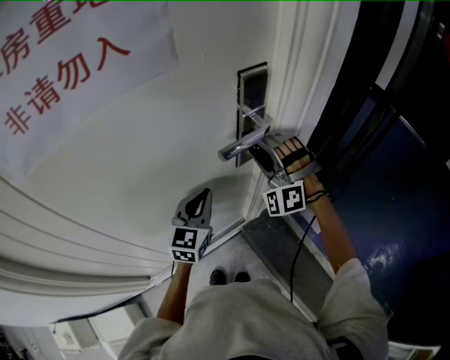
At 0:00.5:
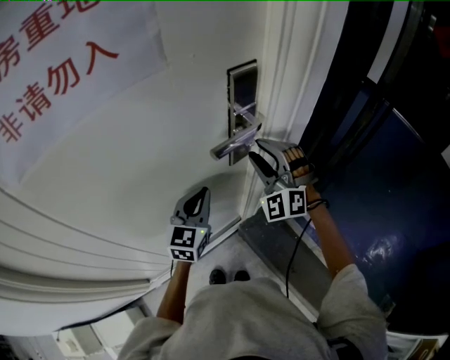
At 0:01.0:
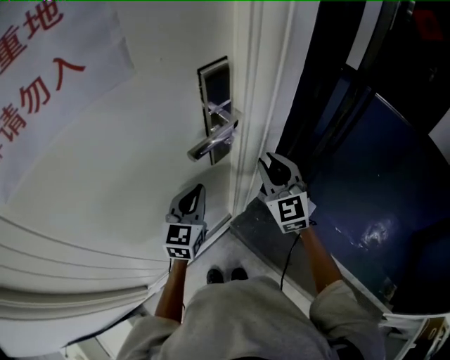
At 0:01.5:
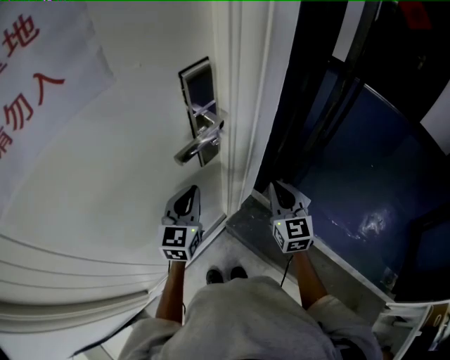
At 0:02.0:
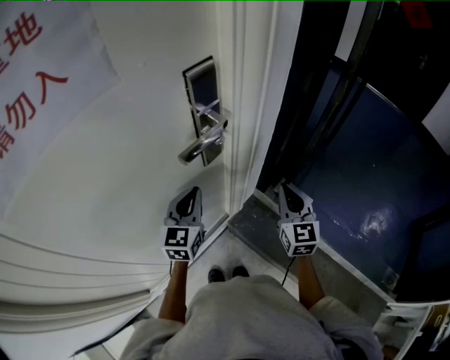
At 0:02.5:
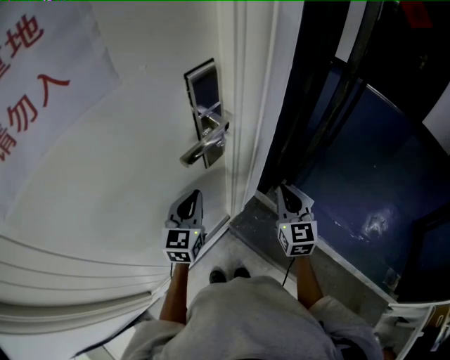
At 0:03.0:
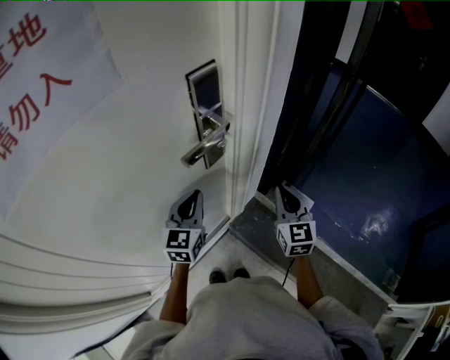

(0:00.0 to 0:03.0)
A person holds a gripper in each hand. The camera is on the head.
0:00.0 - 0:01.5: The right gripper moves to the right, backward and downward, approximately 20 cm, rolls clockwise, seen from behind, by approximately 80 degrees, and closes. The left gripper is displaced to the right by some 5 cm.
0:01.5 - 0:03.0: The grippers stay close to where they were, moving slightly.

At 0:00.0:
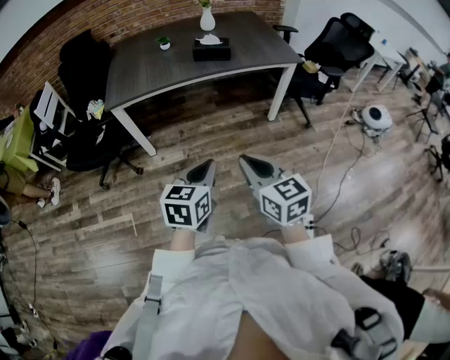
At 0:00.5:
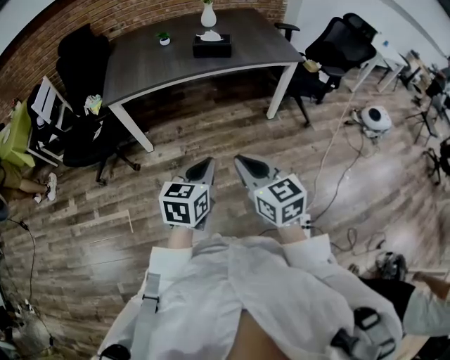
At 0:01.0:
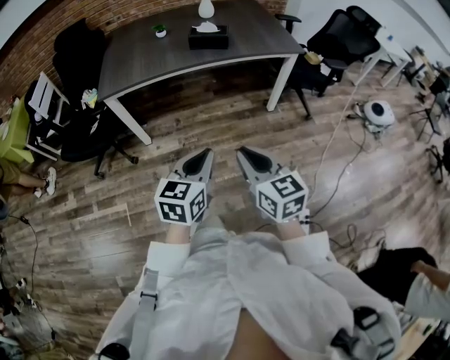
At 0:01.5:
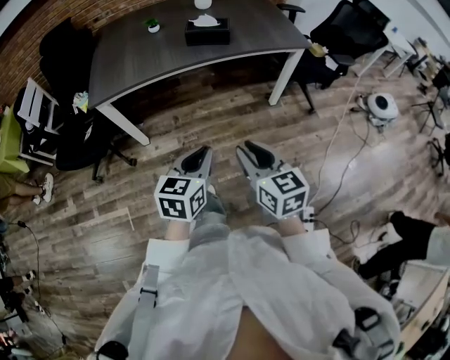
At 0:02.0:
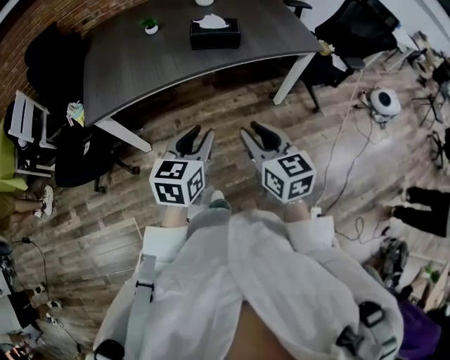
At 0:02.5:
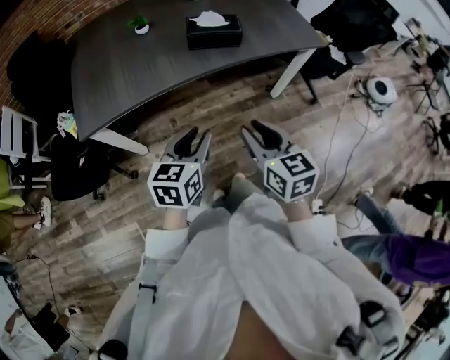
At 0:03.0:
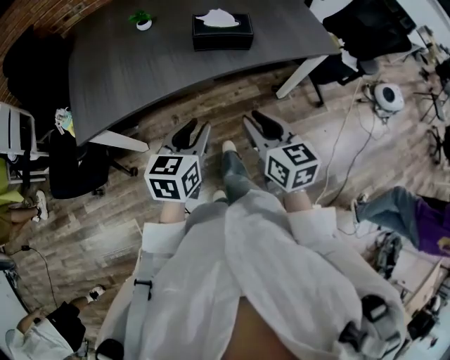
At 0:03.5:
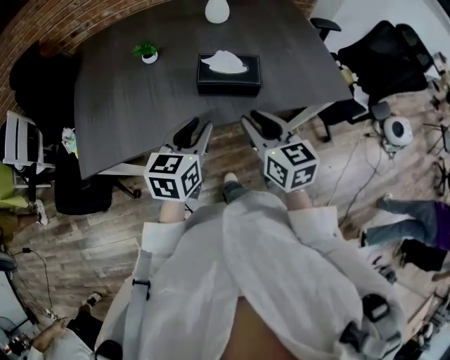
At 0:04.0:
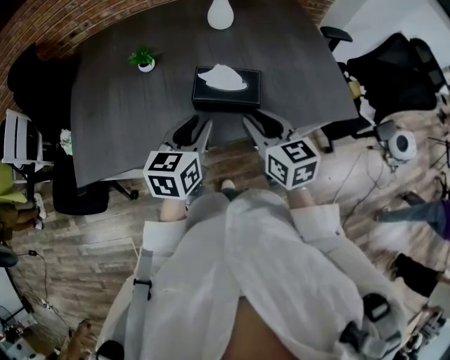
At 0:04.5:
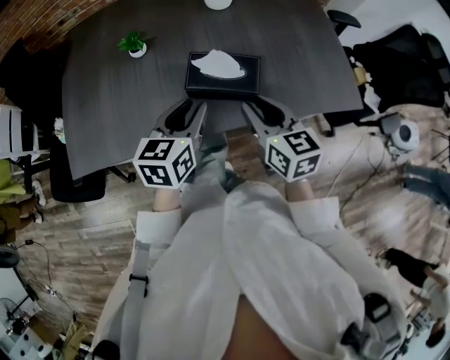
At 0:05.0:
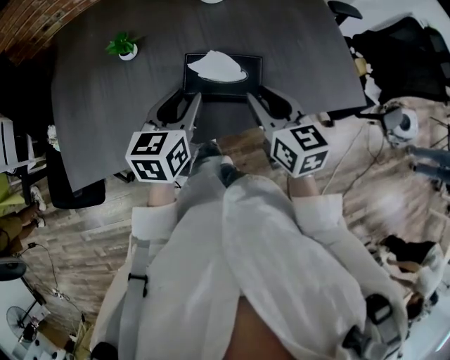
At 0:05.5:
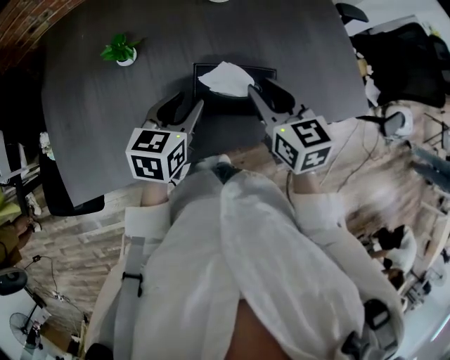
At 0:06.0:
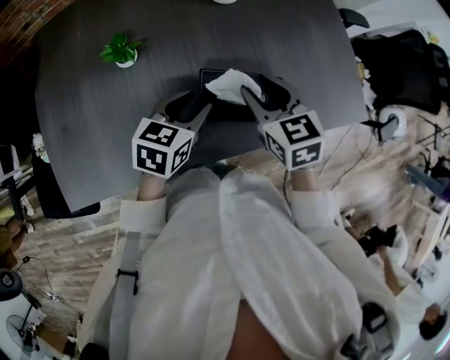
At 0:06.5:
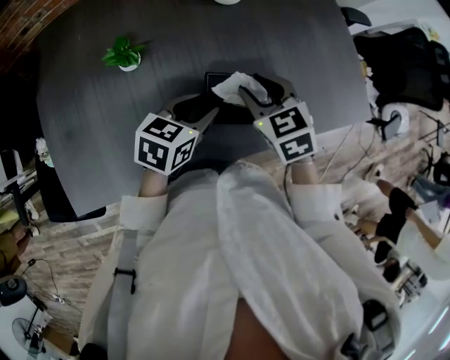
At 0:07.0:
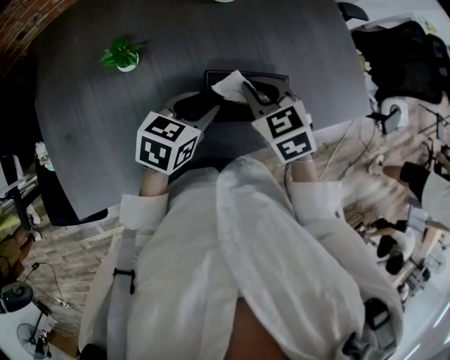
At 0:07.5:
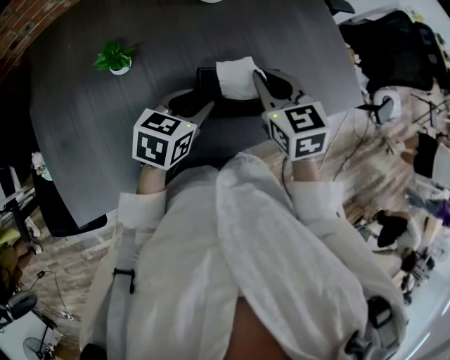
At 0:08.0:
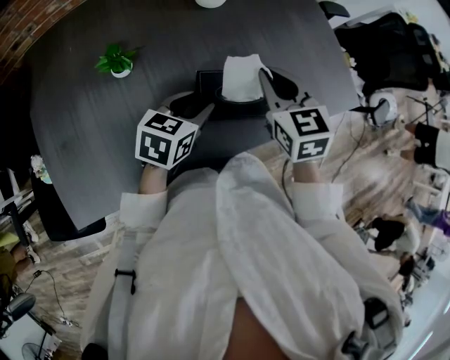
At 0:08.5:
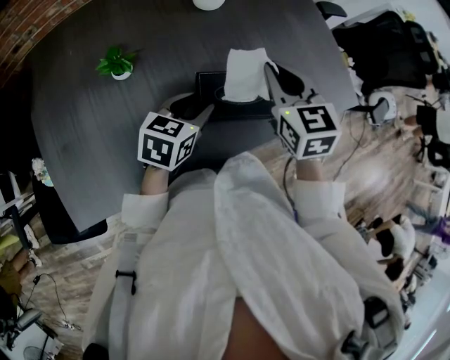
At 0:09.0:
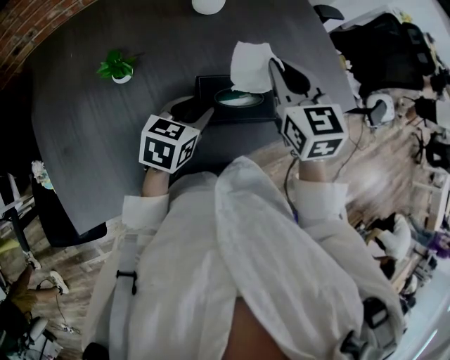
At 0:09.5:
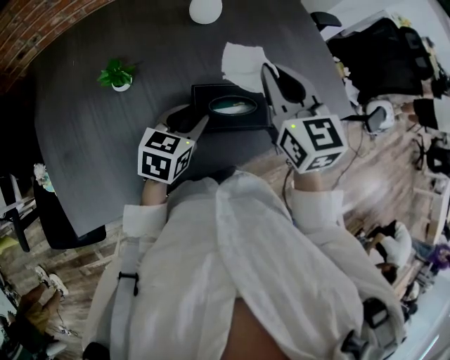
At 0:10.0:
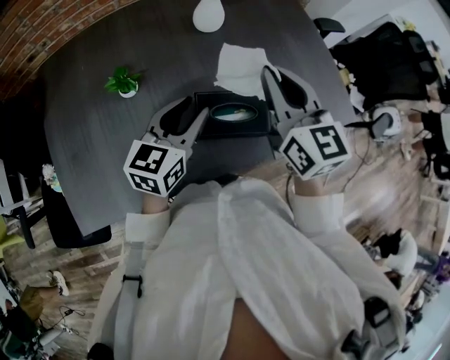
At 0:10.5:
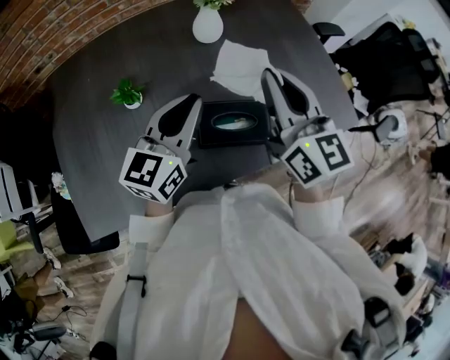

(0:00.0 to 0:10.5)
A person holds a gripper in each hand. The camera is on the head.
0:00.0 - 0:02.0: Both grippers travel together forward, roughly 25 cm. The right gripper opens up, while the left gripper opens up.
0:02.0 - 0:04.0: The two grippers go roughly 40 cm forward.
0:04.0 - 0:06.5: The left gripper moves forward and downward, about 15 cm, and changes its angle by some 30 degrees. The right gripper moves forward and to the left, about 20 cm, and swivels approximately 30 degrees.
0:06.5 - 0:08.5: The right gripper heads upward, covering roughly 10 cm, swivels approximately 20 degrees, and closes up.
0:08.5 - 0:10.5: The grippers both shift upward by approximately 15 cm. The left gripper tilts its fingers roughly 30 degrees upward, and closes. Meanwhile the right gripper rotates about 30 degrees.

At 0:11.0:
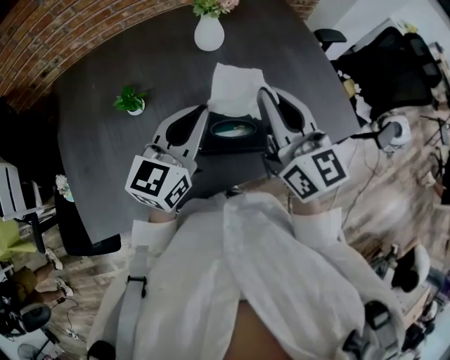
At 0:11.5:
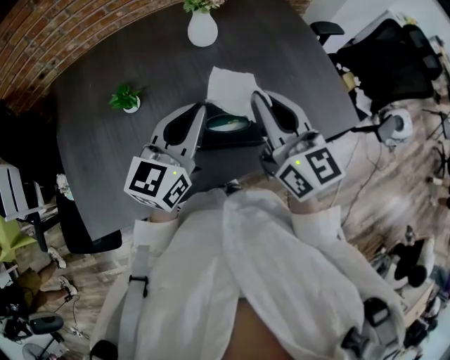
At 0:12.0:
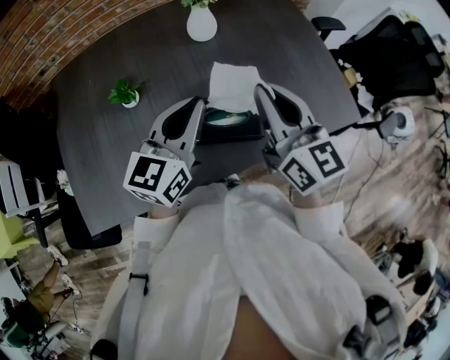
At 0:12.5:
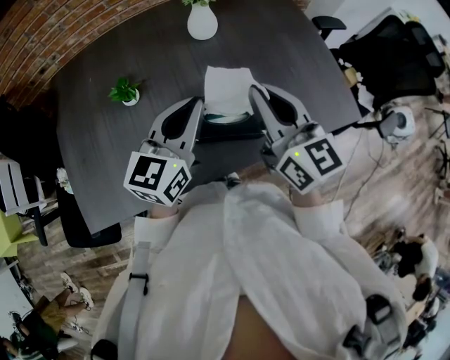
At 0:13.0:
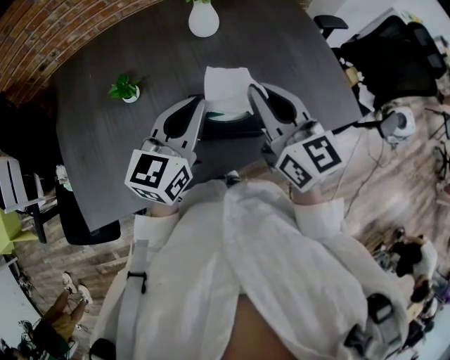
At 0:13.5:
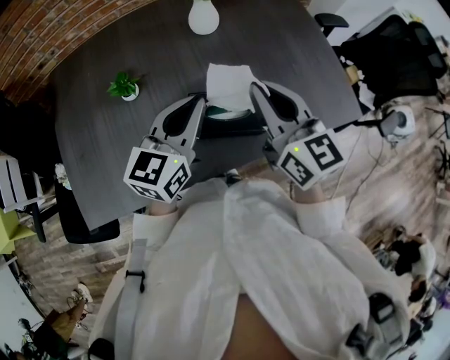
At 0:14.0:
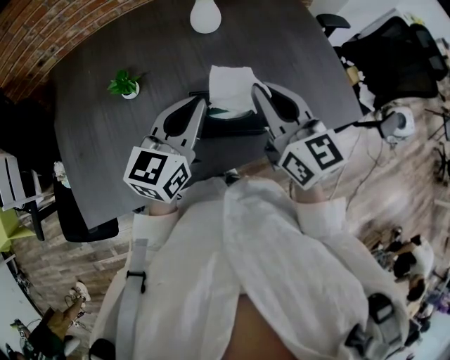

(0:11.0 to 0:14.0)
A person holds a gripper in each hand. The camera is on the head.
0:11.0 - 0:14.0: There are only small adjustments of the grippers.

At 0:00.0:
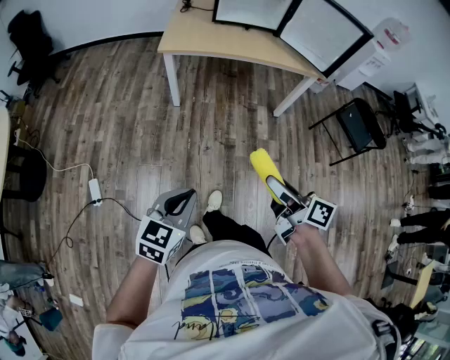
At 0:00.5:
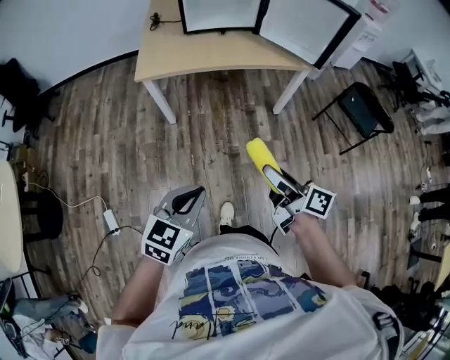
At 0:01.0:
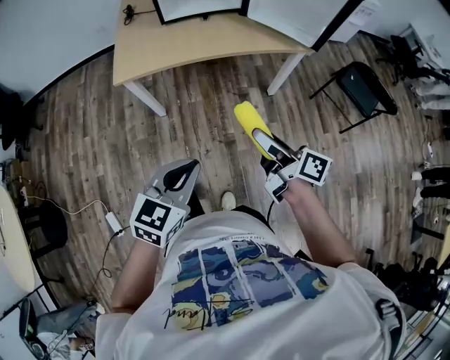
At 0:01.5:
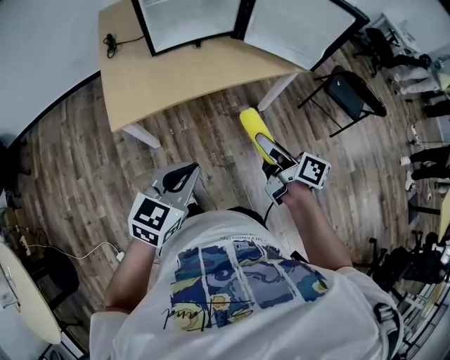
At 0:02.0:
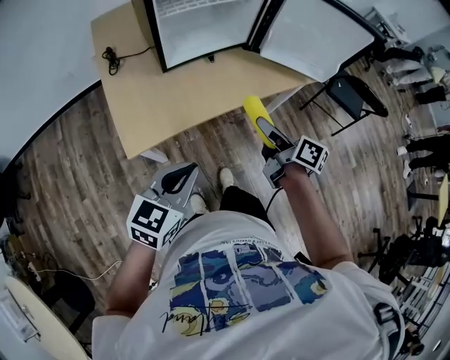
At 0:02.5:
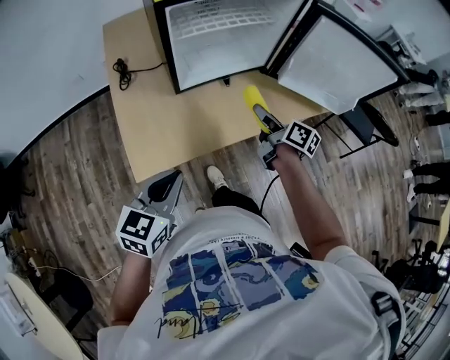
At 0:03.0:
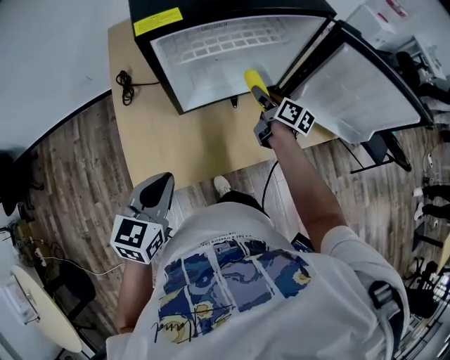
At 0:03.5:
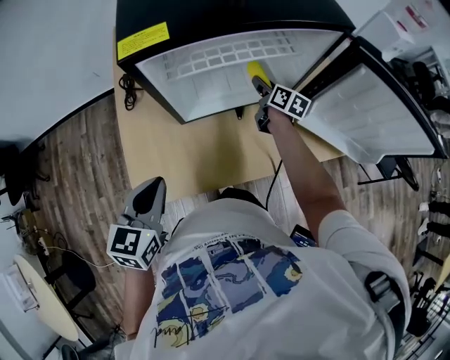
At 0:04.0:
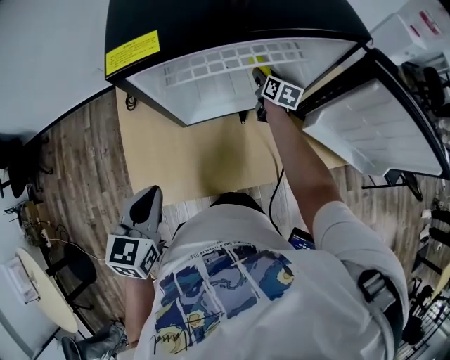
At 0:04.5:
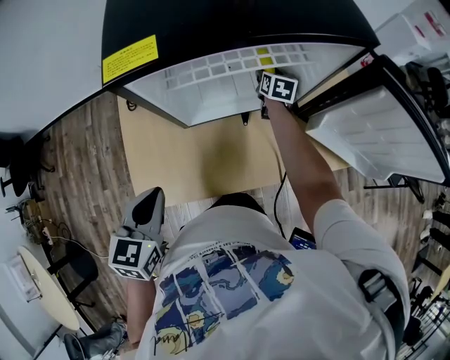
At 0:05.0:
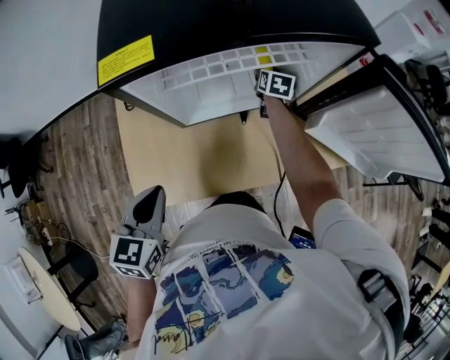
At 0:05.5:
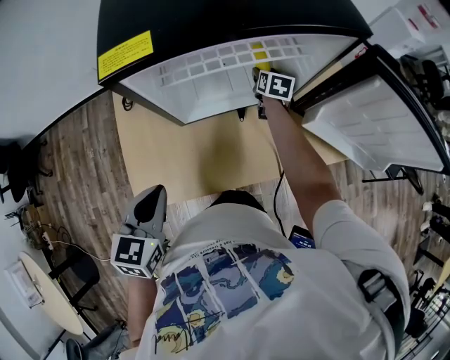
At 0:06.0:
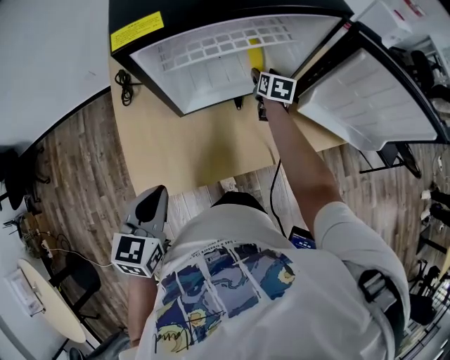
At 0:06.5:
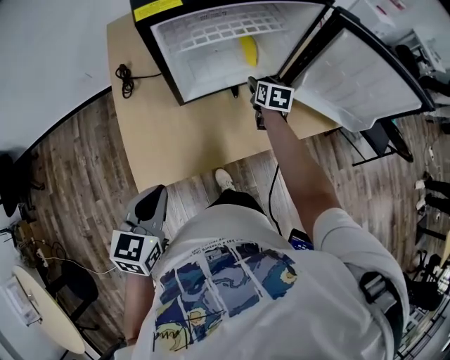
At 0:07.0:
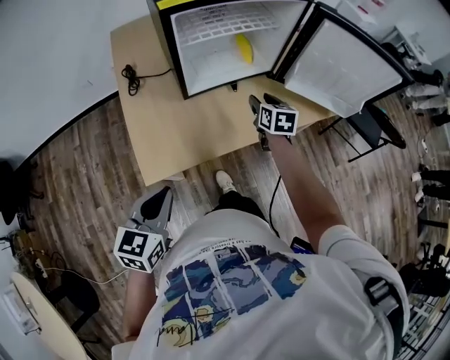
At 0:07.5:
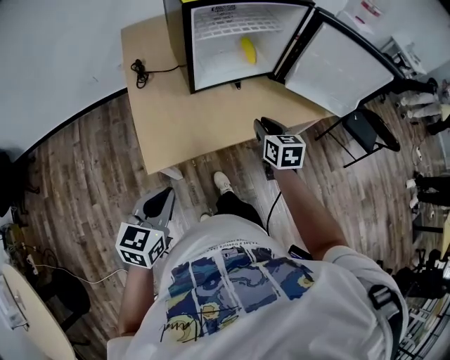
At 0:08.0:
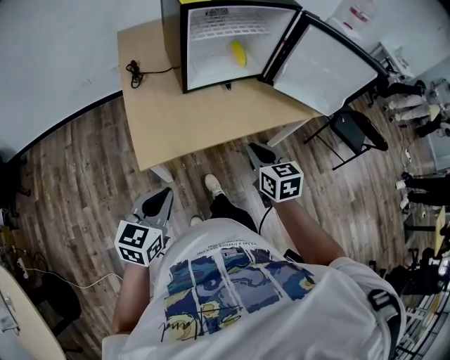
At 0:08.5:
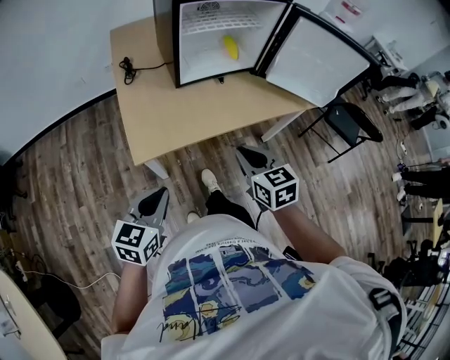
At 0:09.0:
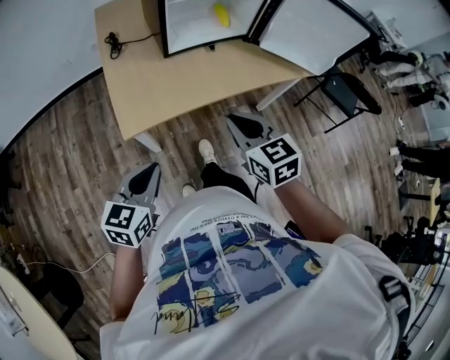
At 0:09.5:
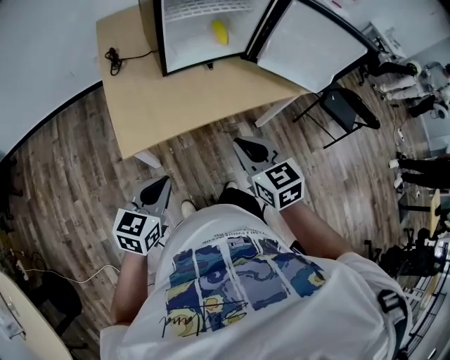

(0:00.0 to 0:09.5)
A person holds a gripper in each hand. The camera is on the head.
0:00.0 - 0:02.0: The pair of grippers is taken roughly 60 cm. The right gripper swivels approximately 30 degrees; the left gripper swivels some 30 degrees.
0:02.0 - 0:04.0: The left gripper is displaced forward by approximately 25 cm, and rotates about 30 degrees. Meanwhile the right gripper is displaced forward by approximately 50 cm, and changes its angle by some 30 degrees.
0:04.0 - 0:05.5: There are only small adjustments of the grippers.
0:05.5 - 0:07.5: The left gripper heads backward, covering roughly 25 cm. The right gripper is displaced backward by approximately 40 cm, and closes up.
0:07.5 - 0:09.5: The left gripper goes about 5 cm to the right. Meanwhile the right gripper moves backward and upward, roughly 20 cm.
